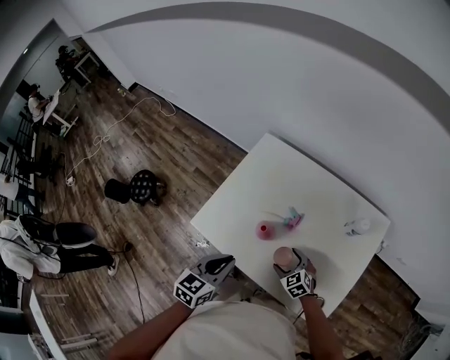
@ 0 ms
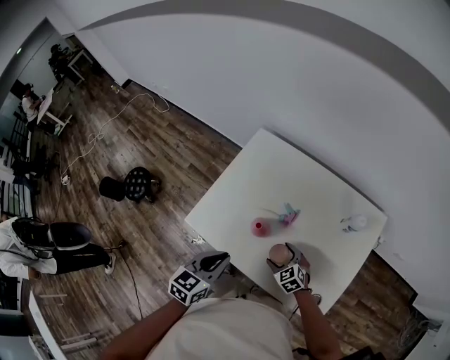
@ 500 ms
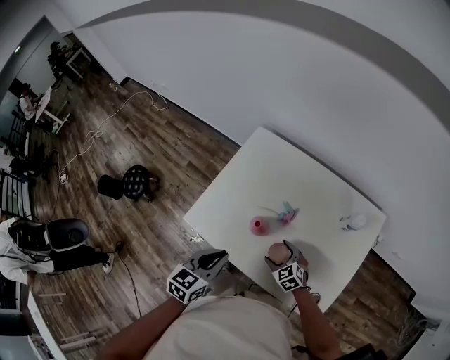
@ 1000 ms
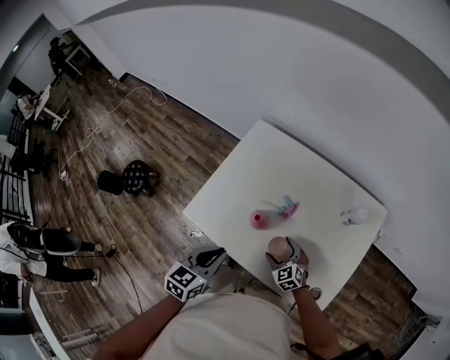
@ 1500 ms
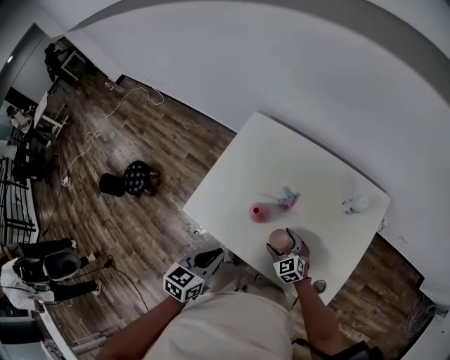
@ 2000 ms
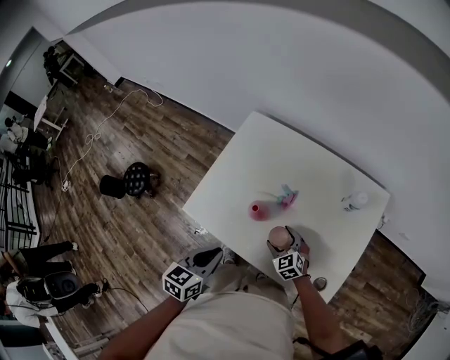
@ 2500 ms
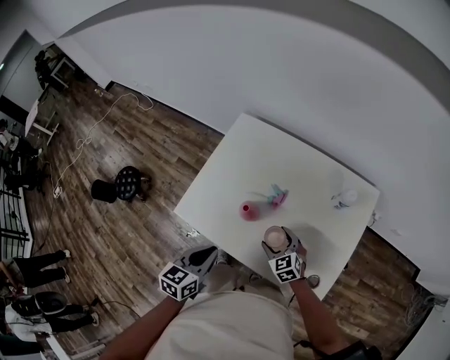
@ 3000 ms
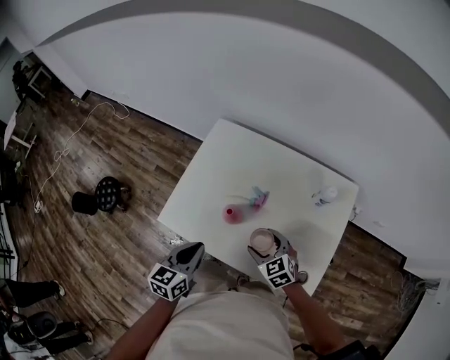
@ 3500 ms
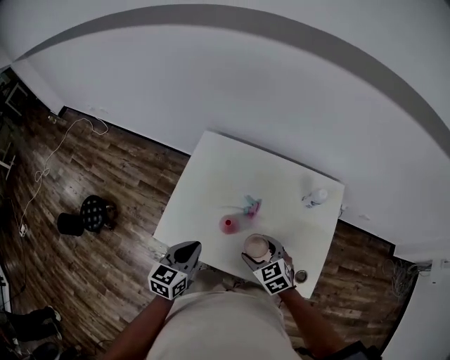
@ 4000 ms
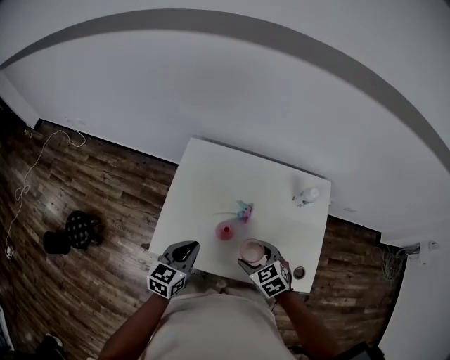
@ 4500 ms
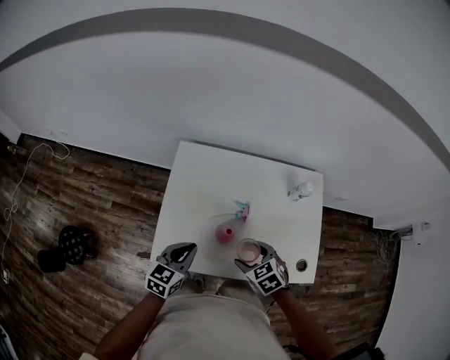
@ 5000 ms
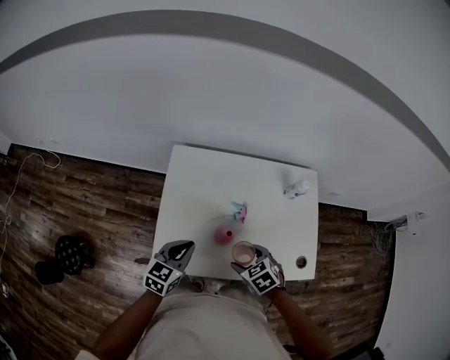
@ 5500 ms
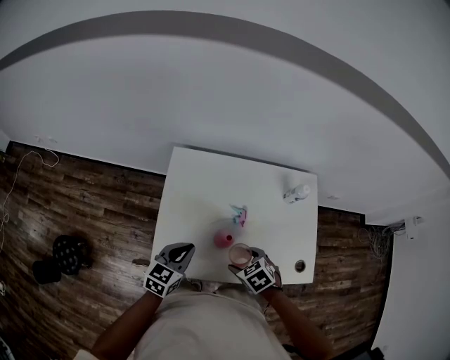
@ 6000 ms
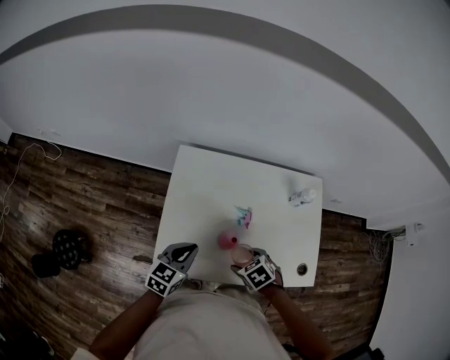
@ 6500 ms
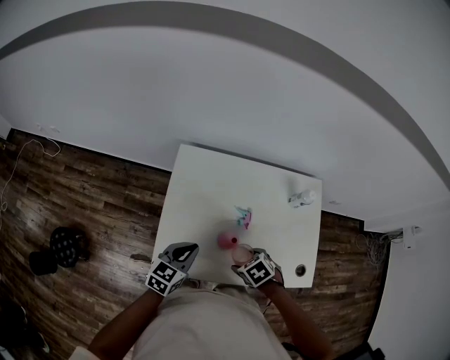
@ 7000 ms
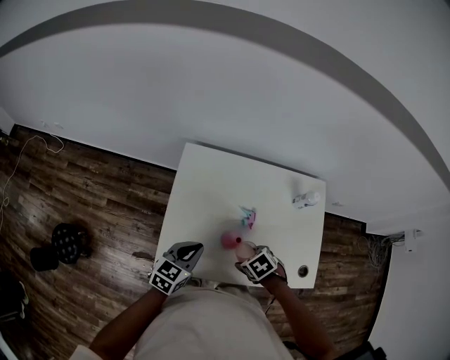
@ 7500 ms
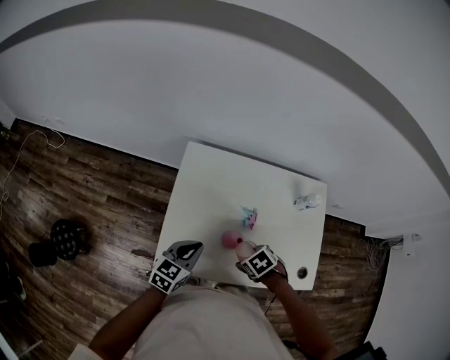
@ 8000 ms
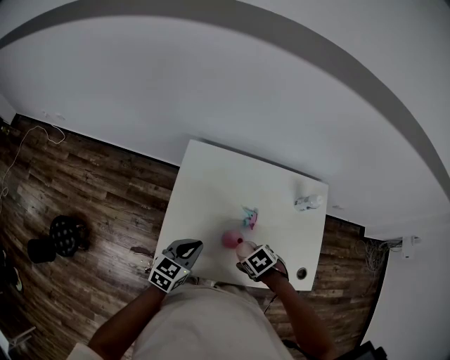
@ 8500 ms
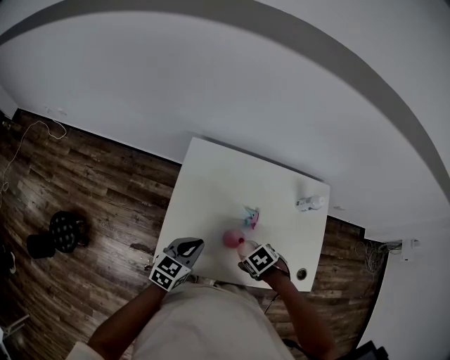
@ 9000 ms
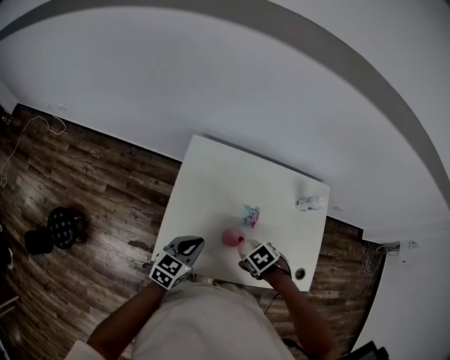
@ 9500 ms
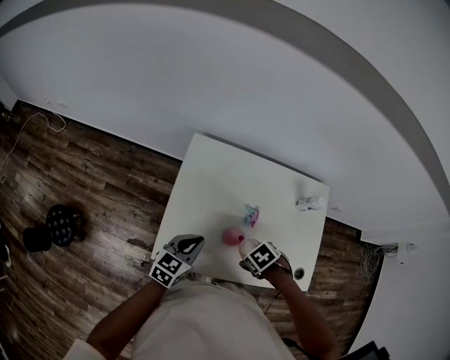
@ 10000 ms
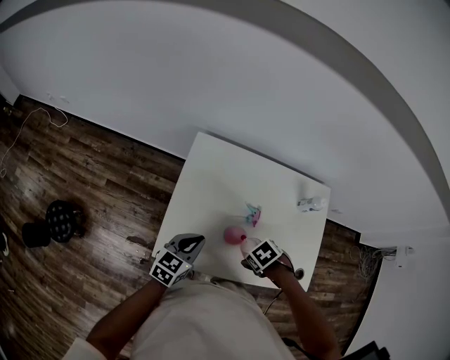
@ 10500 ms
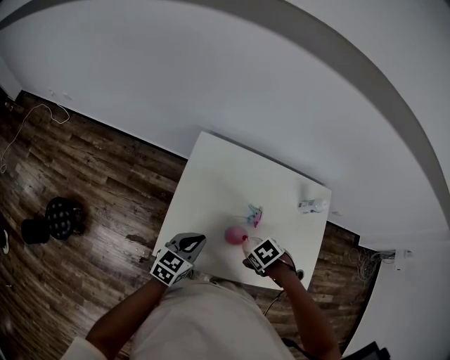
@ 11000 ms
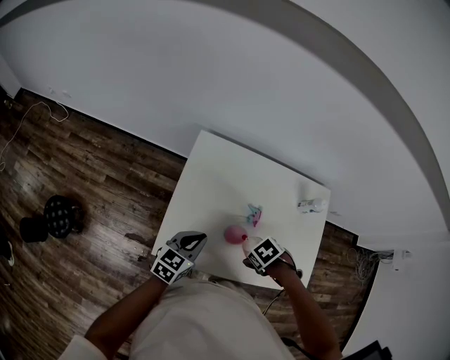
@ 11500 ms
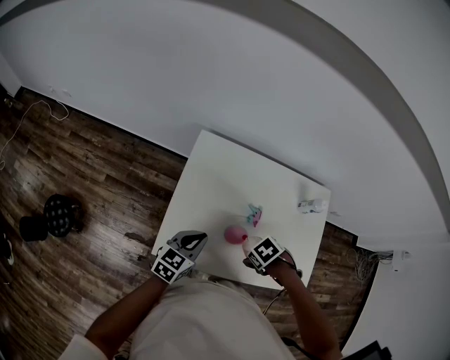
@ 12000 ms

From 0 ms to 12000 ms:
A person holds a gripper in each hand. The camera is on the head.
From 0 ms to 2000 ms: The grippers make only small movements.
From 2000 ms to 4000 ms: The right gripper shifts roughly 15 cm upward. The left gripper goes roughly 10 cm forward.
From 4000 ms to 6000 ms: The left gripper moves forward and to the left, roughly 10 cm, and swivels about 20 degrees; the right gripper moves to the left, about 10 cm, and turns by about 30 degrees.
From 6000 ms to 8000 ms: The grippers make only small movements.
From 8000 ms to 12000 ms: The grippers move only a little.

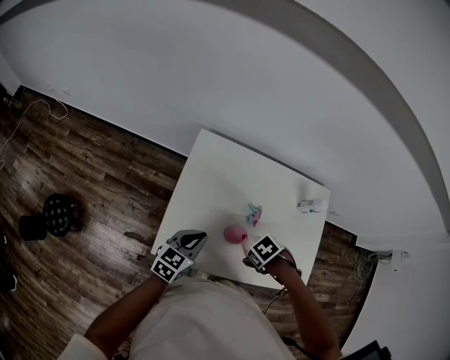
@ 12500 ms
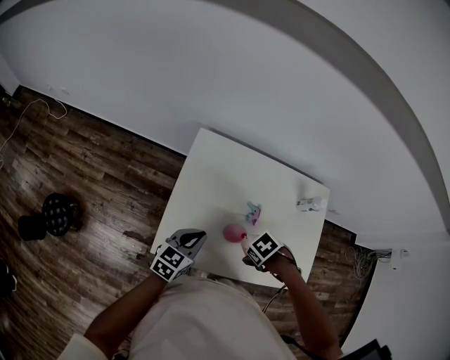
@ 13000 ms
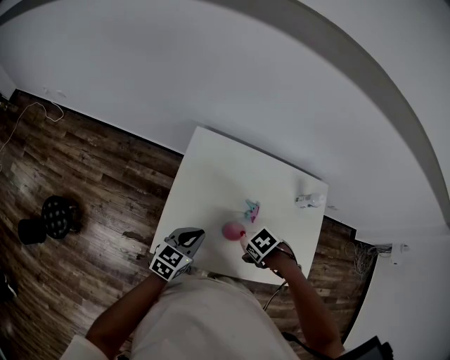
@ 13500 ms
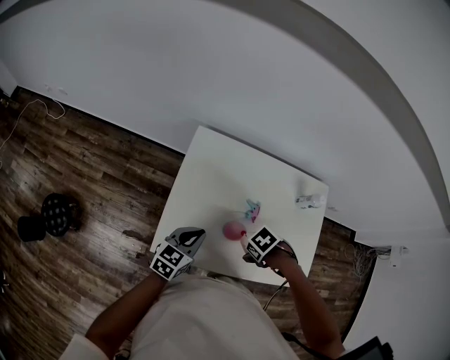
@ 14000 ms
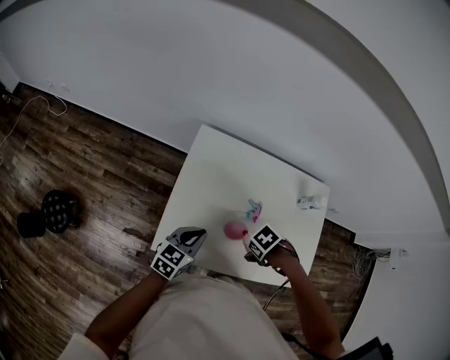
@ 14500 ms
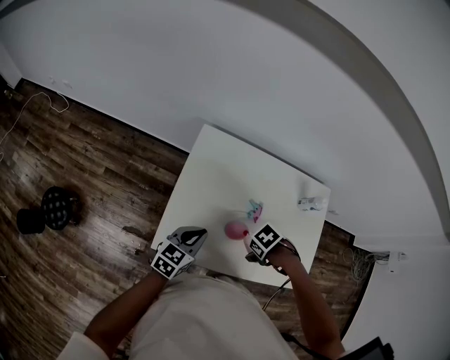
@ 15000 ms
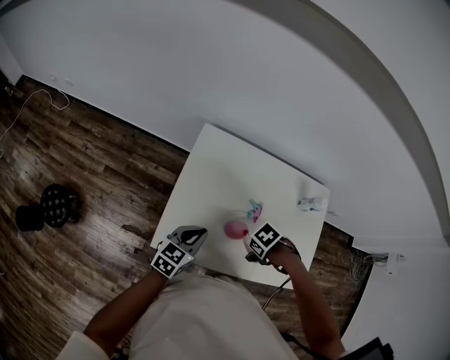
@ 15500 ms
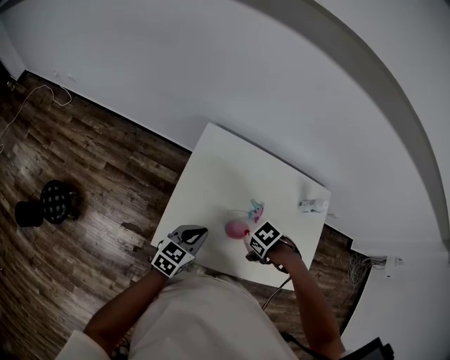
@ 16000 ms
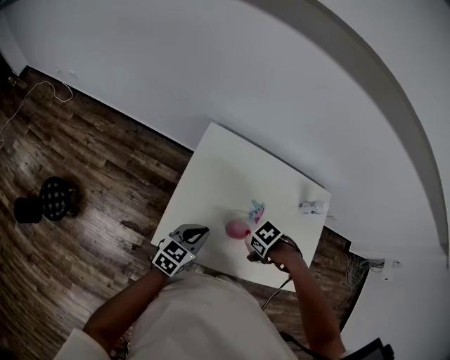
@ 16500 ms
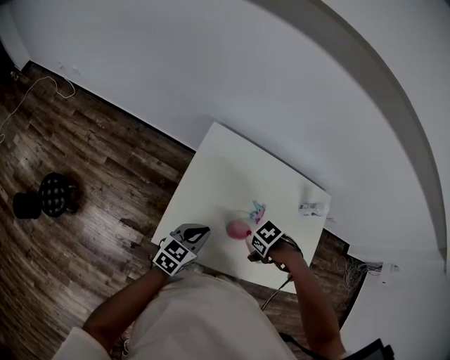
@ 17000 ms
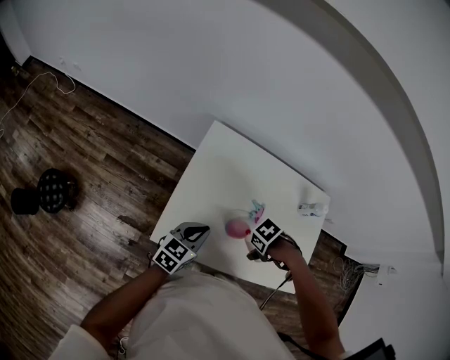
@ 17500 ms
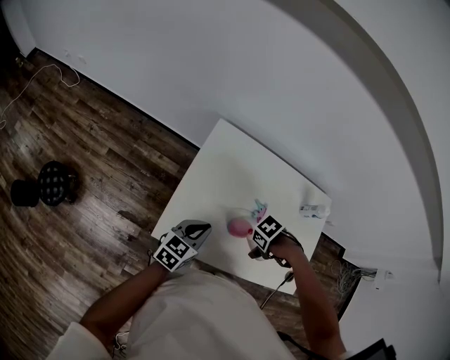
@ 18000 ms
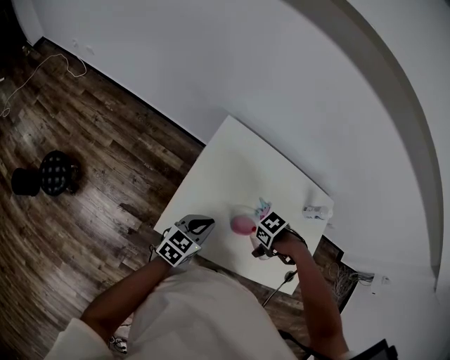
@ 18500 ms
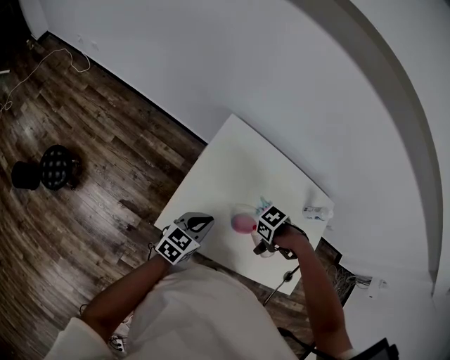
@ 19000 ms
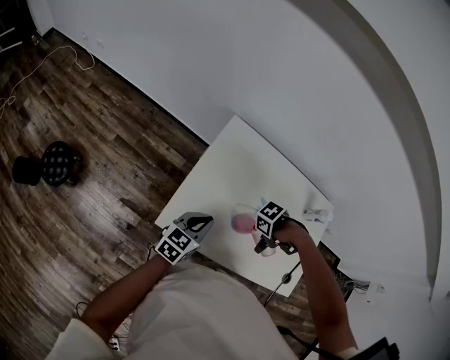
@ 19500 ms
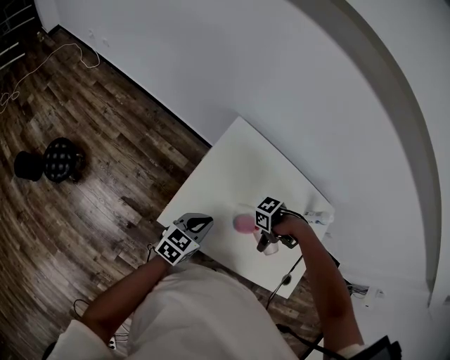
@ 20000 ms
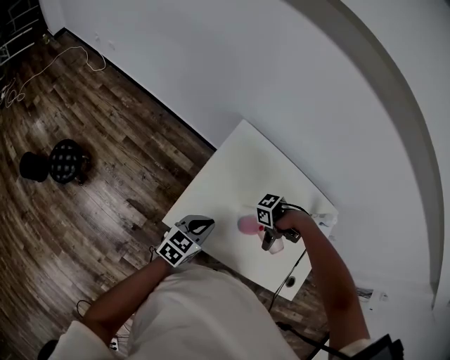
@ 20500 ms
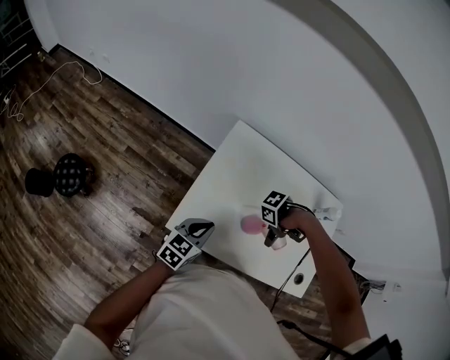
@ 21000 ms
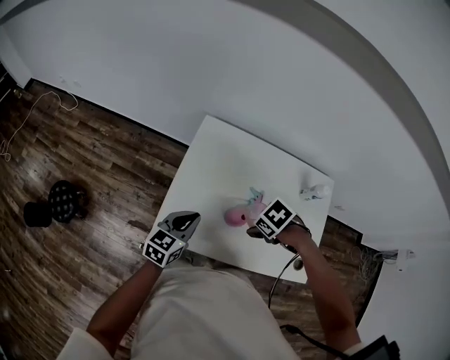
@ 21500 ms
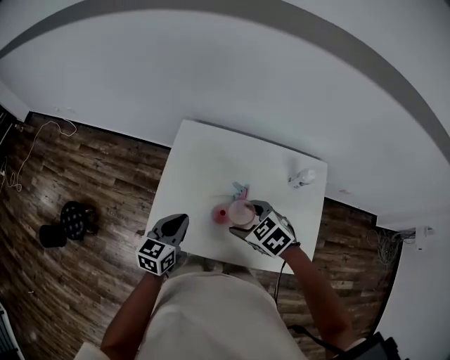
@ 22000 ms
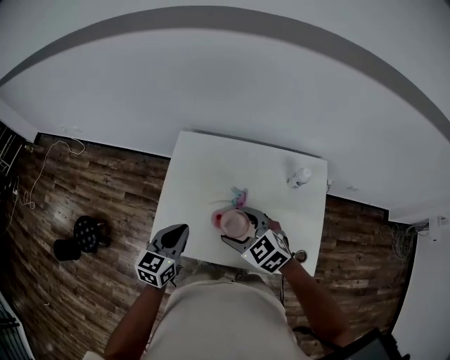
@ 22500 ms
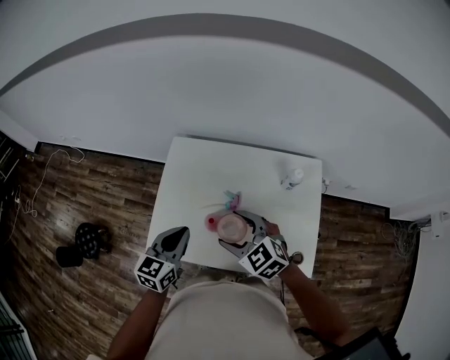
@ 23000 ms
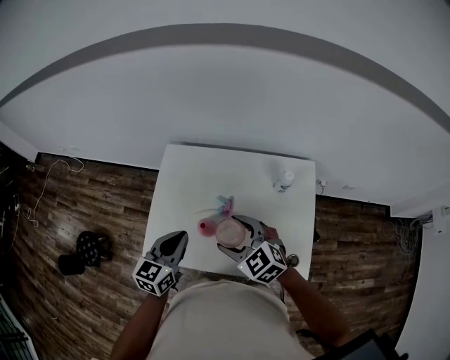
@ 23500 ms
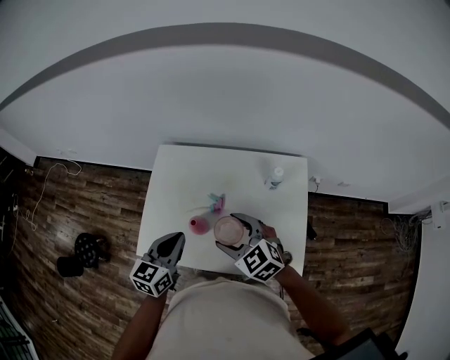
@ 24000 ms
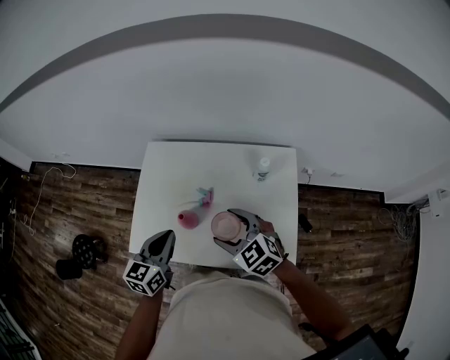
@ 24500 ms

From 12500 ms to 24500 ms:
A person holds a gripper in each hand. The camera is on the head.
From 12500 ms to 16500 ms: The grippers make only small movements.
From 16500 ms to 18500 ms: There are only small adjustments of the grippers.
From 18500 ms to 20500 ms: The right gripper changes its angle by roughly 20 degrees.
From 20500 ms to 22500 ms: The grippers both shift upward by about 15 cm. The right gripper swivels roughly 100 degrees.
From 22500 ms to 24500 ms: The left gripper heads to the right, covering about 10 cm, while the right gripper shifts approximately 15 cm to the right and backward.

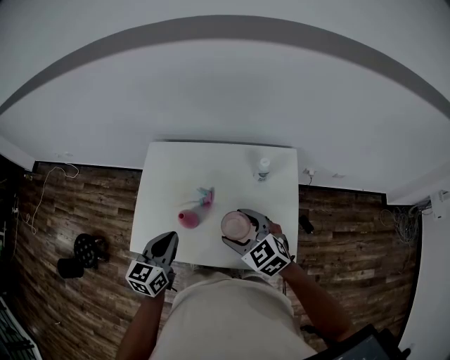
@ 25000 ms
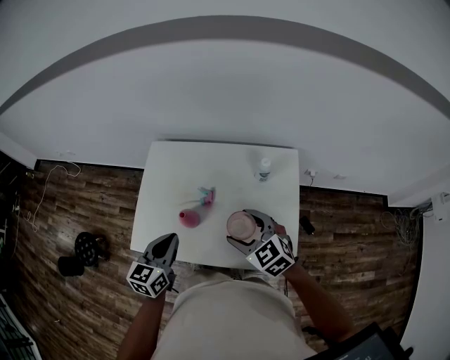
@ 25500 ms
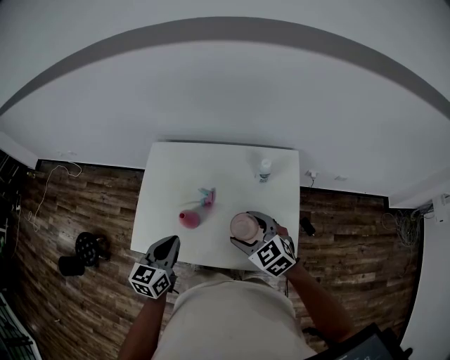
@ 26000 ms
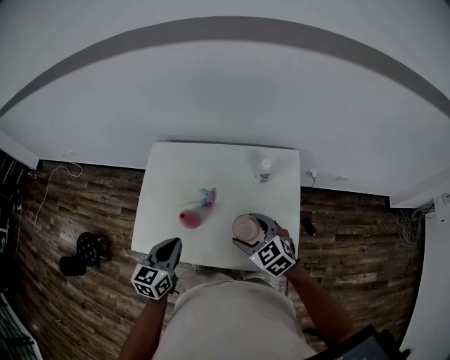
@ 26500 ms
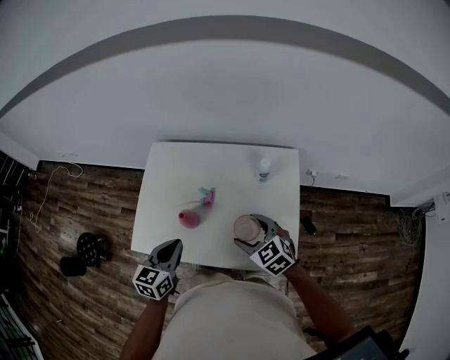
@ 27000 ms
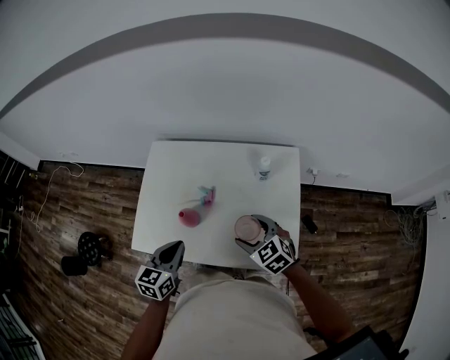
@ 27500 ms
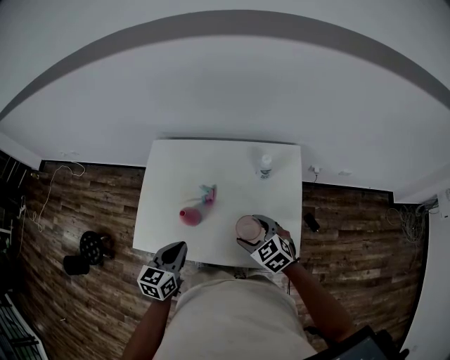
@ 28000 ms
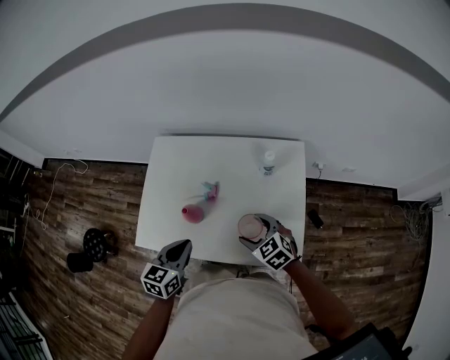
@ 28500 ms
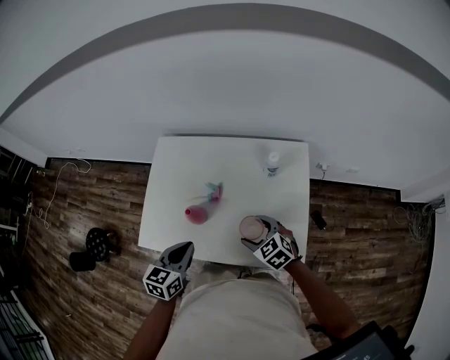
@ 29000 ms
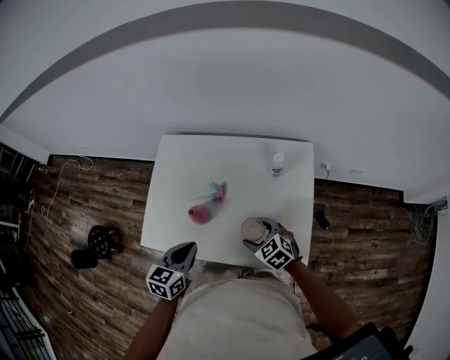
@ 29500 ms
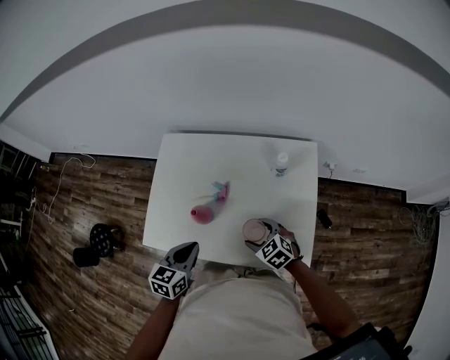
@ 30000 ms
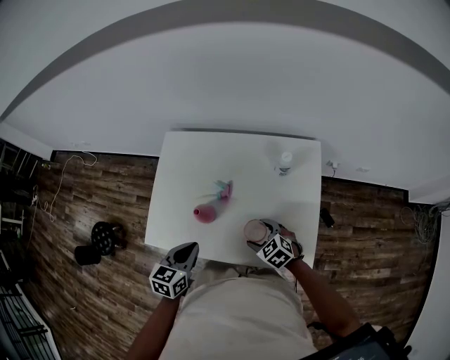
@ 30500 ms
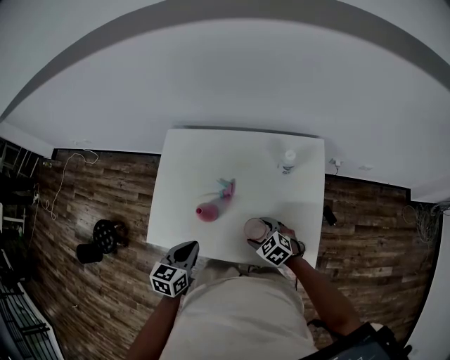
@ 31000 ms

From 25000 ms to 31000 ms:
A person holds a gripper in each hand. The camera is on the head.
From 25000 ms to 27000 ms: The right gripper is displaced downward by approximately 5 cm.
From 27000 ms to 29000 ms: The right gripper is displaced downward by about 5 cm.
From 29000 ms to 31000 ms: The right gripper heads downward, covering about 10 cm. Meanwhile the left gripper moves roughly 5 cm.
